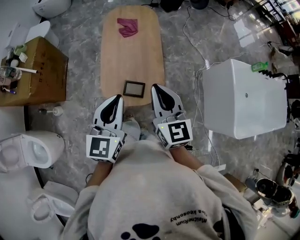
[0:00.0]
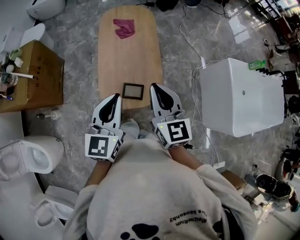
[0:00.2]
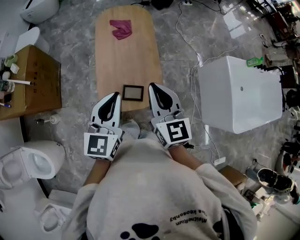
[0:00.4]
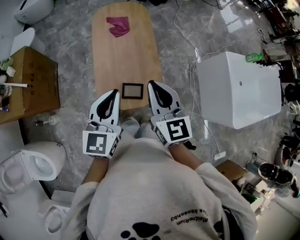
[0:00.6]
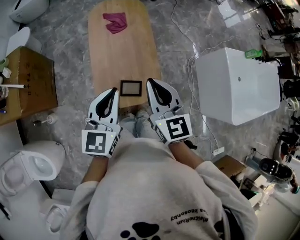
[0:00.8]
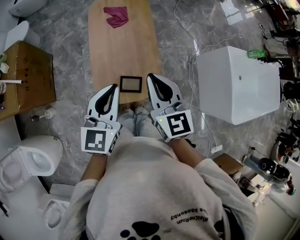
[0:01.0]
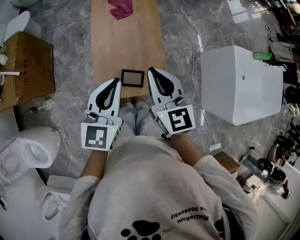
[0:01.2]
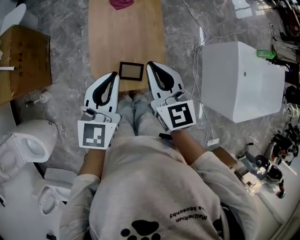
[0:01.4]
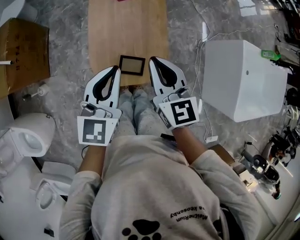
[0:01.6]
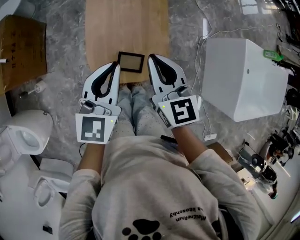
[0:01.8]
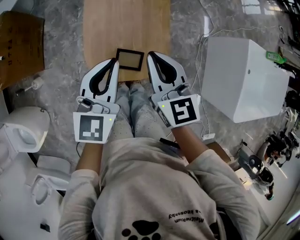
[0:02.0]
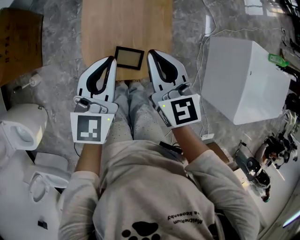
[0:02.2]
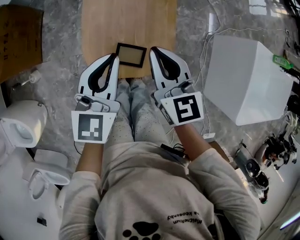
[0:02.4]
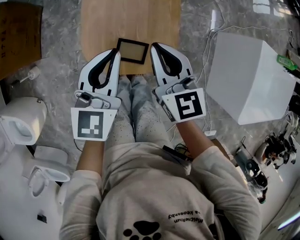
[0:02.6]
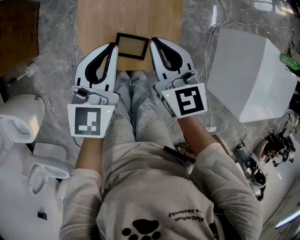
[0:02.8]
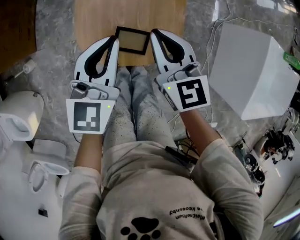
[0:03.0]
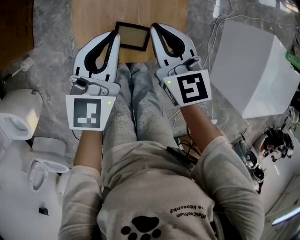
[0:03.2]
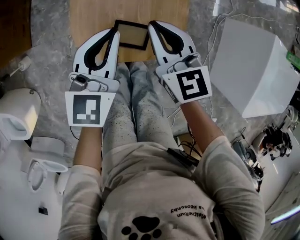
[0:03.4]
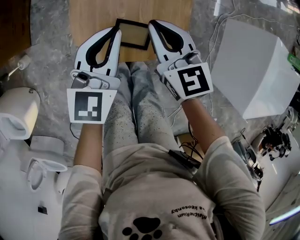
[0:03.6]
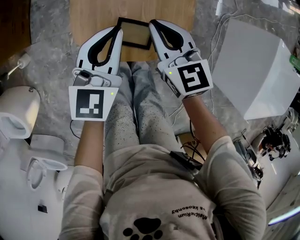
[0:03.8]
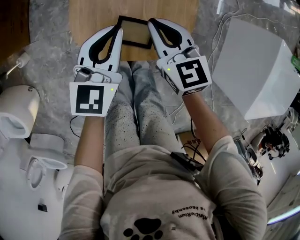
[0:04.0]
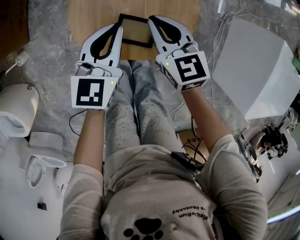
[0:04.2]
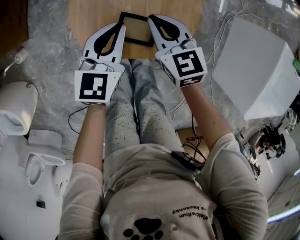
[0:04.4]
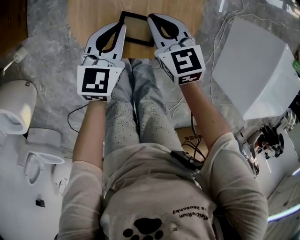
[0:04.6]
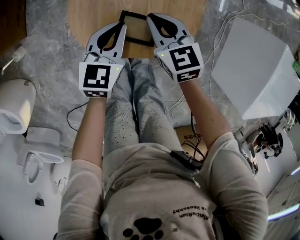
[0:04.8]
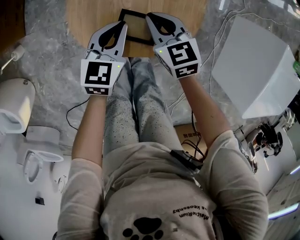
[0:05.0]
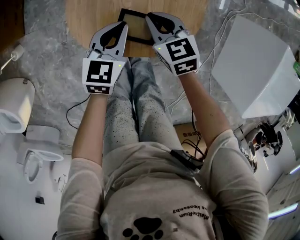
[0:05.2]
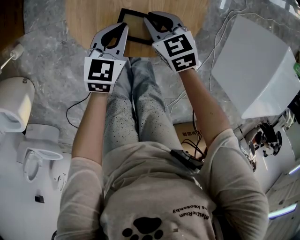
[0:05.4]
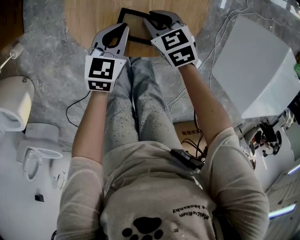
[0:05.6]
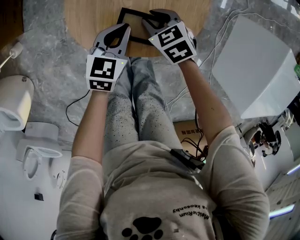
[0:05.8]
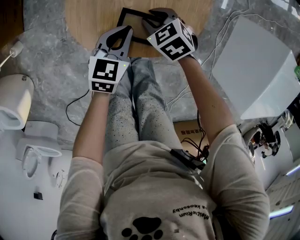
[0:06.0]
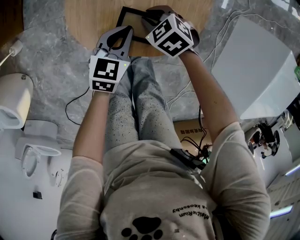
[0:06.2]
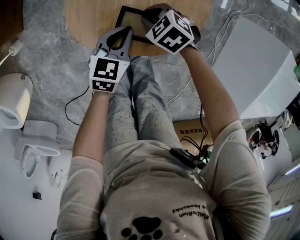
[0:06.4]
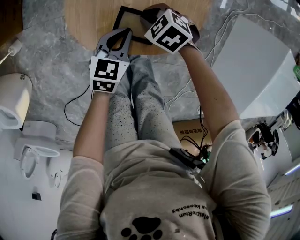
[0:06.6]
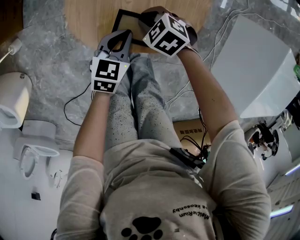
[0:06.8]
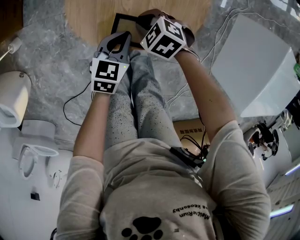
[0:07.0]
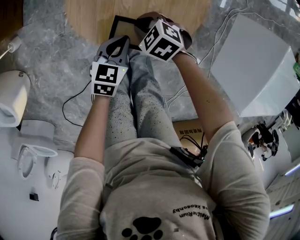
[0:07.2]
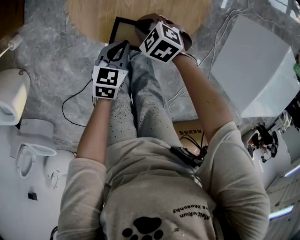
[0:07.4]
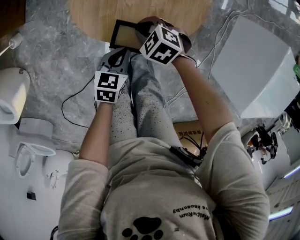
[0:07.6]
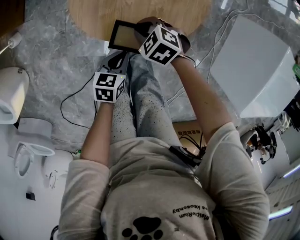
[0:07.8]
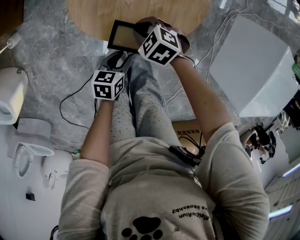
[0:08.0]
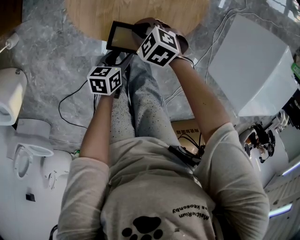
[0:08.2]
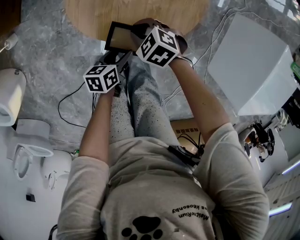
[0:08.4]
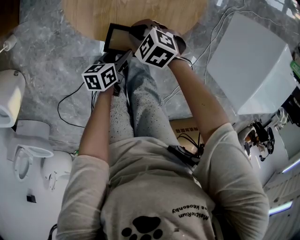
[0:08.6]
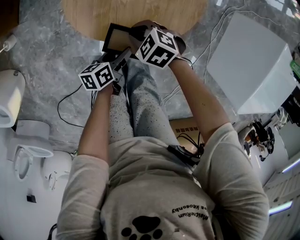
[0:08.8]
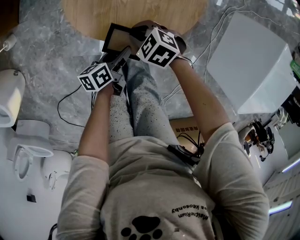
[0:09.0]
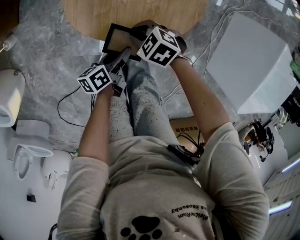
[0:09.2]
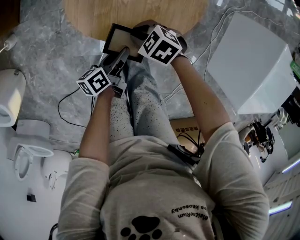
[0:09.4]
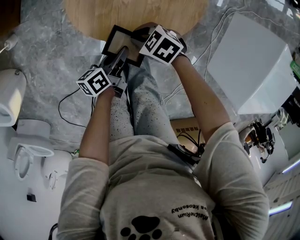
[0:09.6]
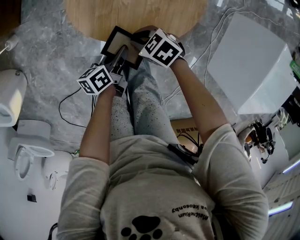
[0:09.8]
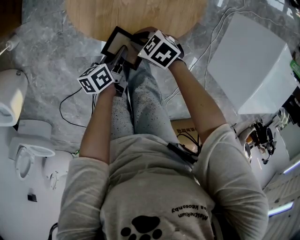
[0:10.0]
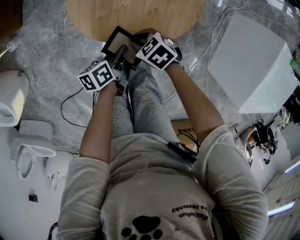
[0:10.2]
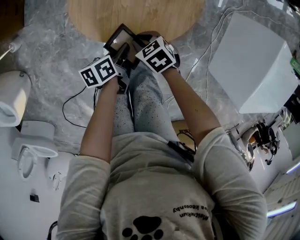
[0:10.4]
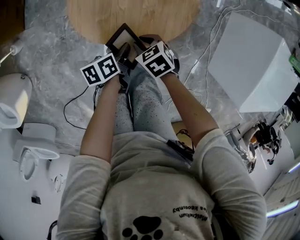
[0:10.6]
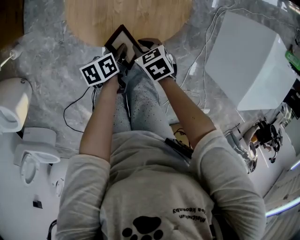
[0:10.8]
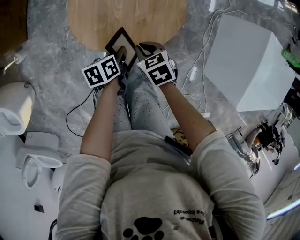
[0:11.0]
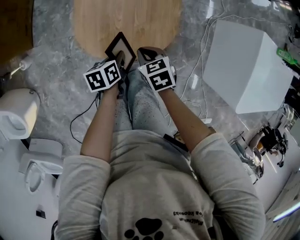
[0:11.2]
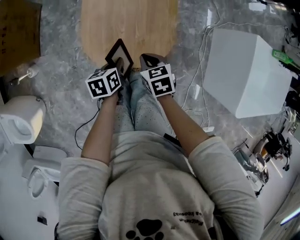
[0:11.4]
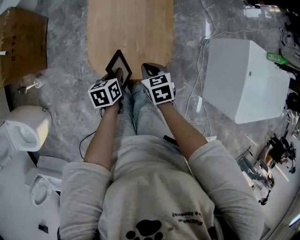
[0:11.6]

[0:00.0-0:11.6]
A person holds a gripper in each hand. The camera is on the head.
0:00.0 to 0:01.4: The right gripper goes roughly 15 cm forward, downward and to the left, while the left gripper is displaced forward and downward by about 10 cm.
0:01.4 to 0:02.8: The two grippers go some 15 cm downward.
0:02.8 to 0:04.4: The grippers both shift downward by about 15 cm.
0:04.4 to 0:05.8: The grippers both shift downward by roughly 10 cm. The right gripper changes its angle by some 30 degrees, and opens.
0:05.8 to 0:07.2: The left gripper moves roughly 10 cm, while the right gripper moves about 10 cm, and rotates some 20 degrees.
0:07.2 to 0:08.8: The right gripper shifts by approximately 5 cm. Meanwhile the left gripper ends up some 10 cm from where it was, rolls counterclockwise, seen from behind, by some 50 degrees, and opens up.
0:08.8 to 0:10.2: The left gripper closes up.
0:10.2 to 0:11.6: Both grippers travel together upward, some 20 cm. The left gripper turns by roughly 30 degrees. The right gripper turns by some 40 degrees.

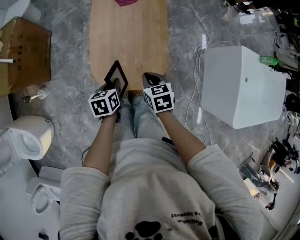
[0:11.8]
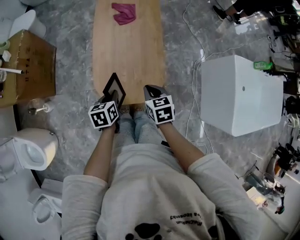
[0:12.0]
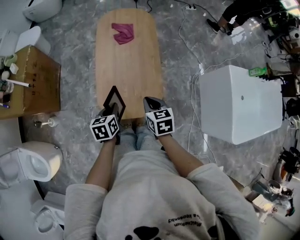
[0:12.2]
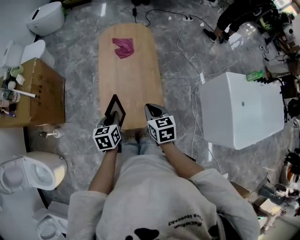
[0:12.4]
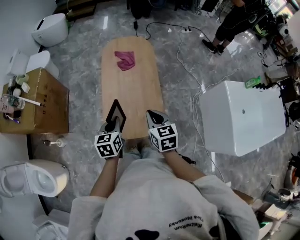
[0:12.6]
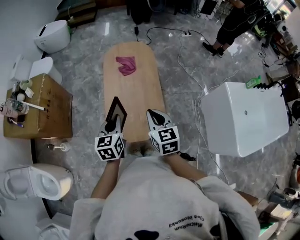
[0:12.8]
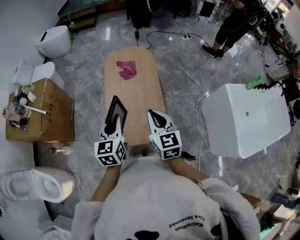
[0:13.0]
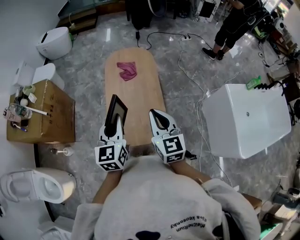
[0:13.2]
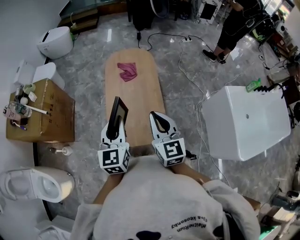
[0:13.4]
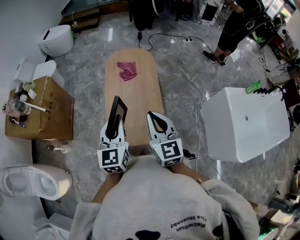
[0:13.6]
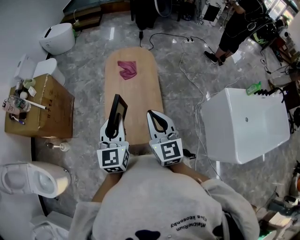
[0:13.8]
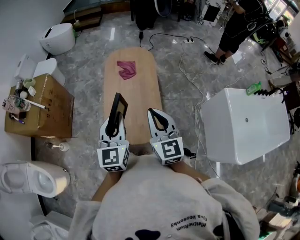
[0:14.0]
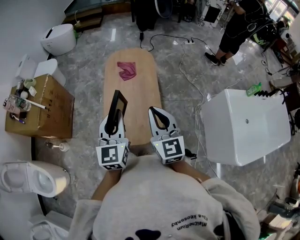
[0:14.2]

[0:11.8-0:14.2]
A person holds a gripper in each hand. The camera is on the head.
0:11.8 to 0:13.0: The grippers both shift upward by roughly 25 cm. The left gripper changes its angle by some 40 degrees. The right gripper tilts its fingers some 40 degrees upward.
0:13.0 to 0:14.2: The left gripper travels upward and to the right by approximately 10 cm; the right gripper shifts approximately 5 cm upward.

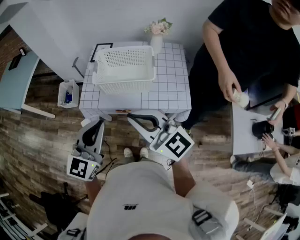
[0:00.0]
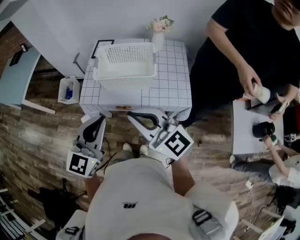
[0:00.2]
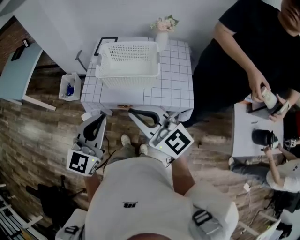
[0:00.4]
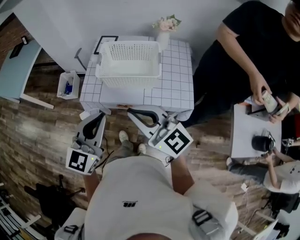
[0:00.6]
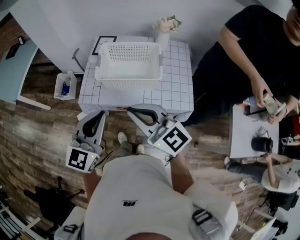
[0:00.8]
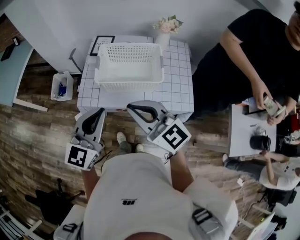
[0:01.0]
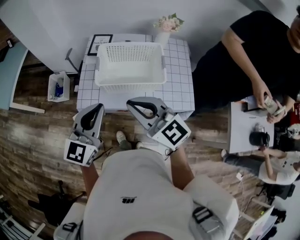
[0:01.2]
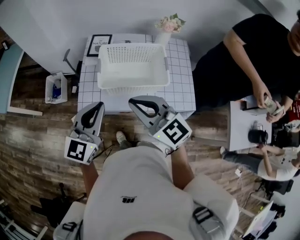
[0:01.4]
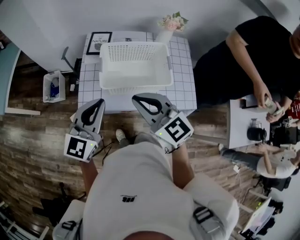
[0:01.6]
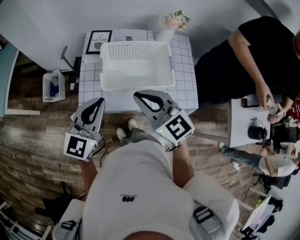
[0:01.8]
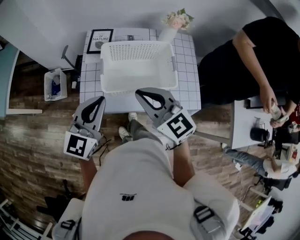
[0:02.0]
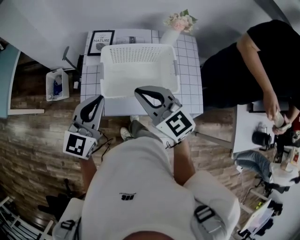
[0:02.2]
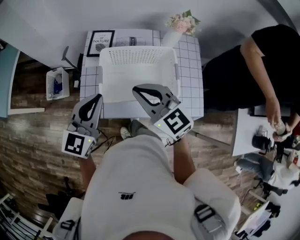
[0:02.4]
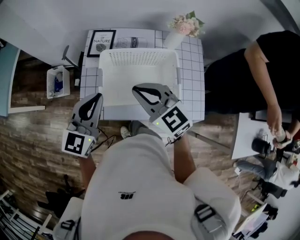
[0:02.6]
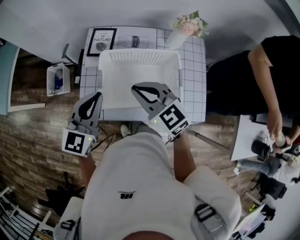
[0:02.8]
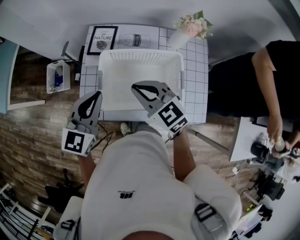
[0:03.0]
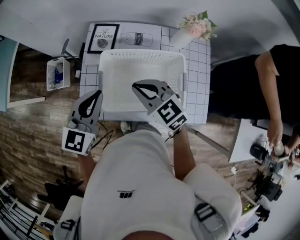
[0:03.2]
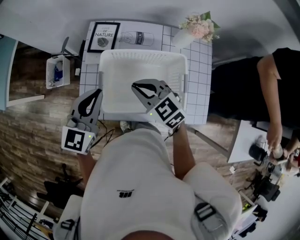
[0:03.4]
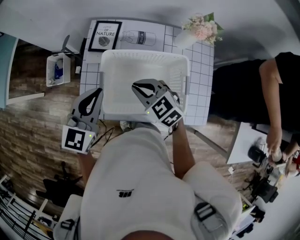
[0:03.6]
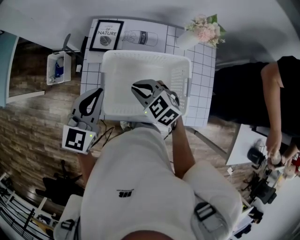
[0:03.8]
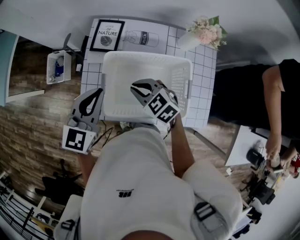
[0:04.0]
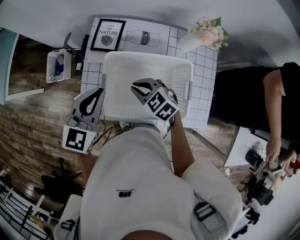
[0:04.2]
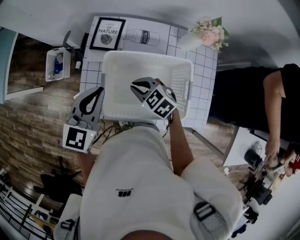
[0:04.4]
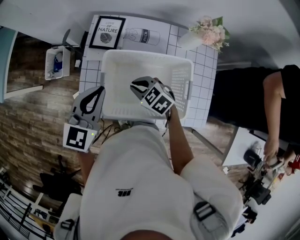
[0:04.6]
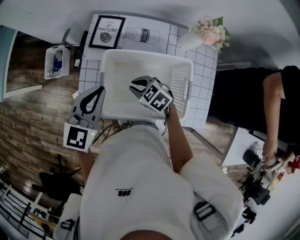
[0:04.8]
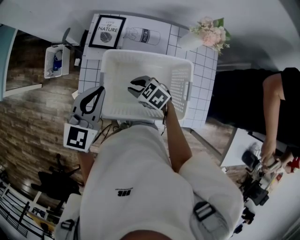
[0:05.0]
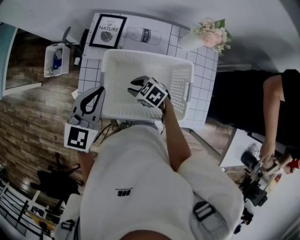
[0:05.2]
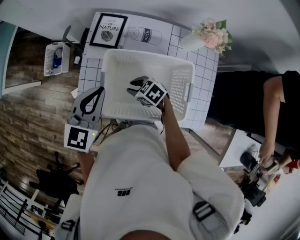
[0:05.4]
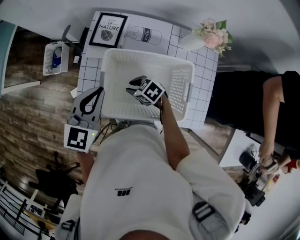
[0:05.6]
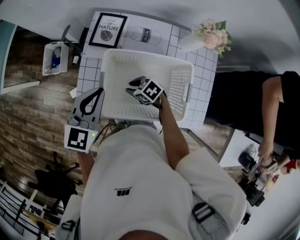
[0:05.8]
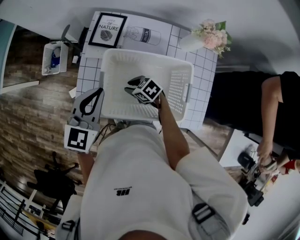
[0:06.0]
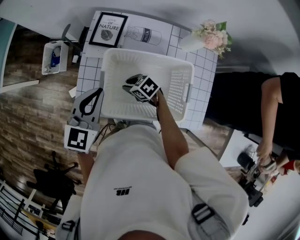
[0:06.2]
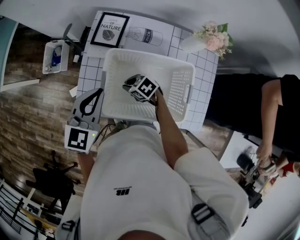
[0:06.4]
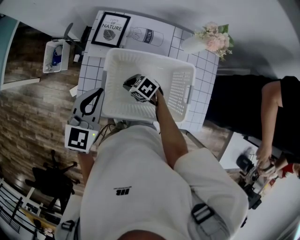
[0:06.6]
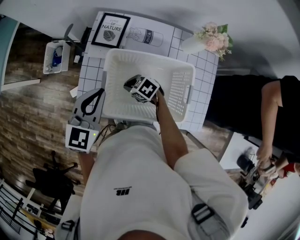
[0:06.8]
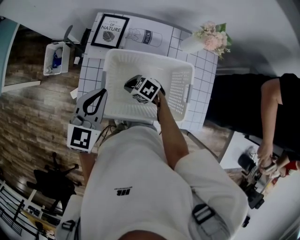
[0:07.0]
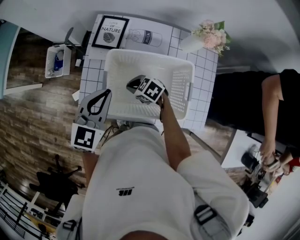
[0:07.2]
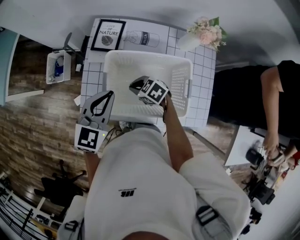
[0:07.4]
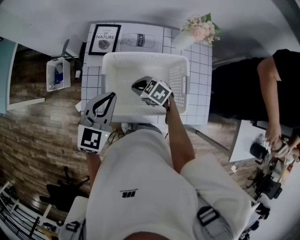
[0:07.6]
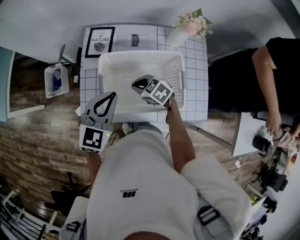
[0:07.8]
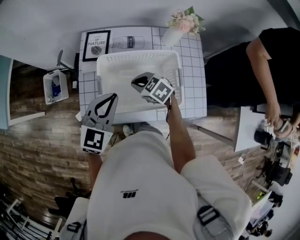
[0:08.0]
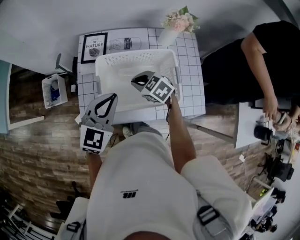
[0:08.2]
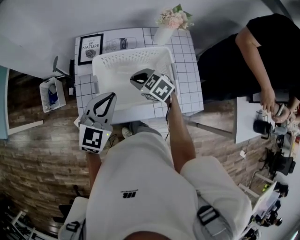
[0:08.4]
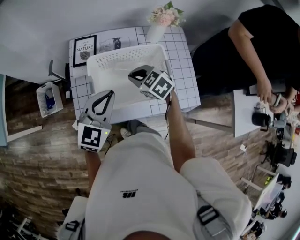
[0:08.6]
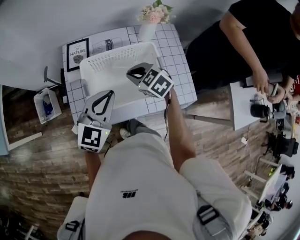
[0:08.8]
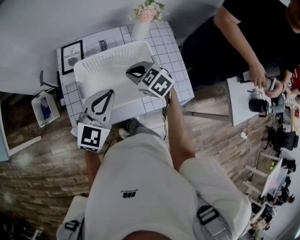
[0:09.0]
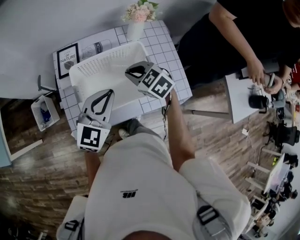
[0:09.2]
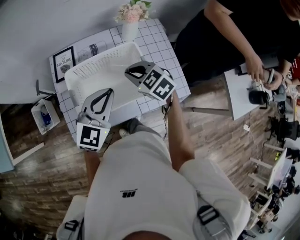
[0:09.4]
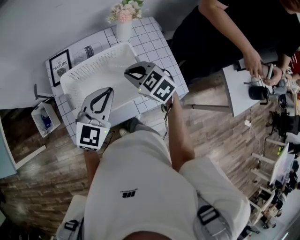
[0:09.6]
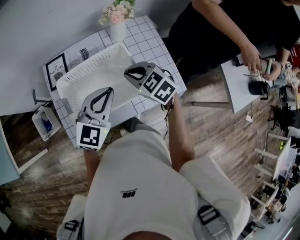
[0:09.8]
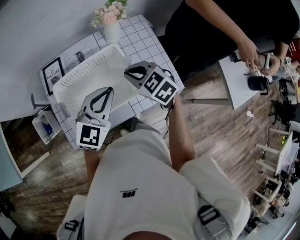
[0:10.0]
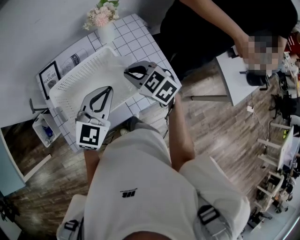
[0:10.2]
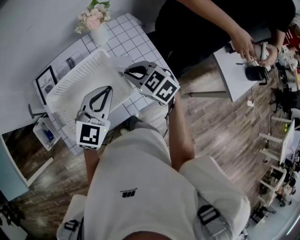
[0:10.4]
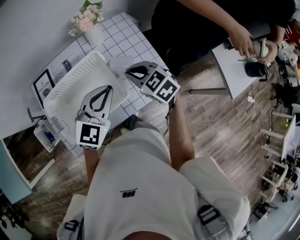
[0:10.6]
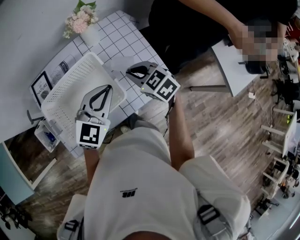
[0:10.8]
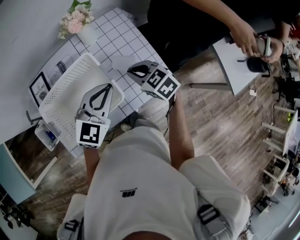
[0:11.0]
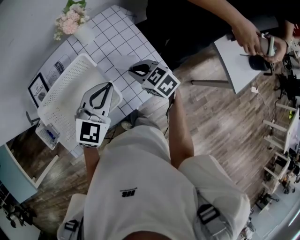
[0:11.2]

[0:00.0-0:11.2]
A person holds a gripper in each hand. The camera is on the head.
0:00.0 to 0:01.6: The two grippers go roughly 20 cm forward. The right gripper changes its angle by approximately 20 degrees.
0:01.6 to 0:03.2: The right gripper travels forward and downward by approximately 20 cm. The left gripper moves forward, roughly 15 cm.
0:03.2 to 0:04.8: The right gripper shifts some 15 cm downward, and changes its angle by approximately 30 degrees.
0:04.8 to 0:06.4: The right gripper is displaced downward by approximately 5 cm.
0:06.4 to 0:08.0: The left gripper travels backward by about 5 cm, and swivels roughly 20 degrees, while the right gripper heads upward and to the right, covering roughly 10 cm, and changes its angle by about 20 degrees.
0:08.0 to 0:09.6: The right gripper moves to the right and upward, about 15 cm, and swivels about 20 degrees; the left gripper shifts some 10 cm to the right.
0:09.6 to 0:11.2: The left gripper is displaced to the right by some 15 cm. Meanwhile the right gripper heads to the right and downward, covering roughly 20 cm, and rotates some 20 degrees.
